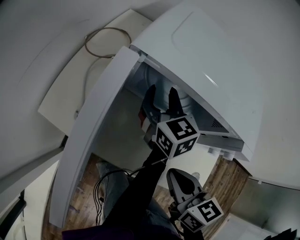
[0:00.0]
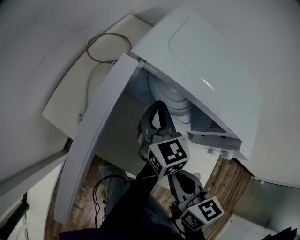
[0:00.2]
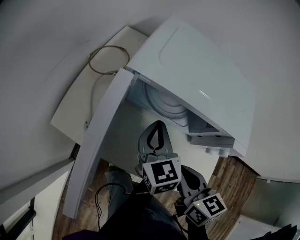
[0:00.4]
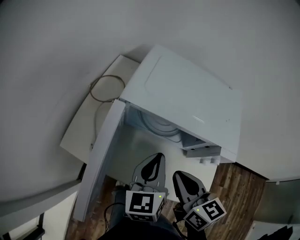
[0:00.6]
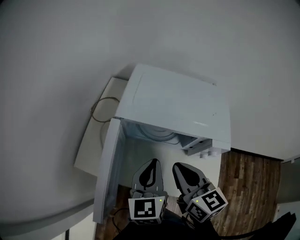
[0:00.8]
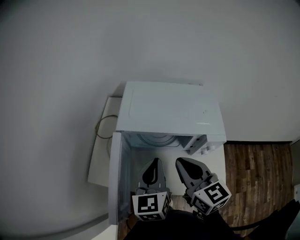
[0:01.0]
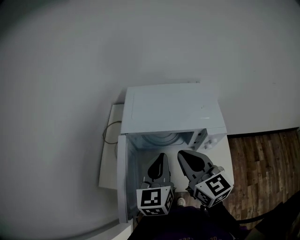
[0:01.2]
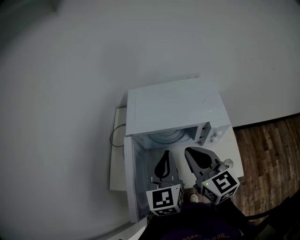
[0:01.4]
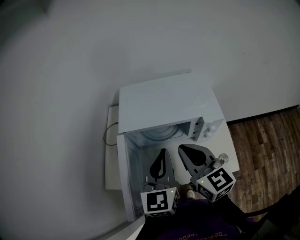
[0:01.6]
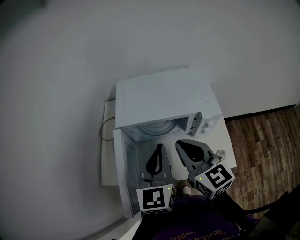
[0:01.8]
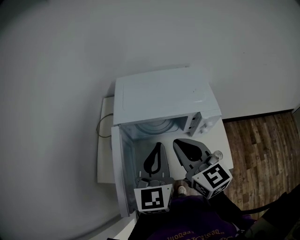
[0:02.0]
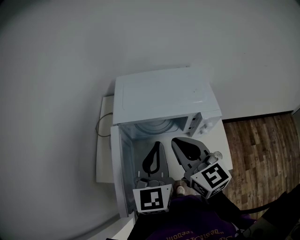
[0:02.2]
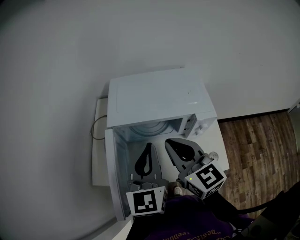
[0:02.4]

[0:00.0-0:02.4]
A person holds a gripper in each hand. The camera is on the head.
0:00.0 to 0:01.2: Both grippers travel together upward, approximately 20 cm. The left gripper rotates roughly 40 degrees, and closes up. The right gripper turns by some 40 degrees.
0:01.2 to 0:02.4: The left gripper shifts by about 5 cm.

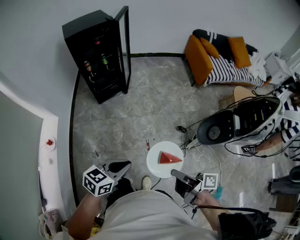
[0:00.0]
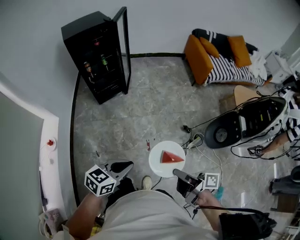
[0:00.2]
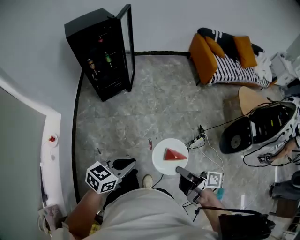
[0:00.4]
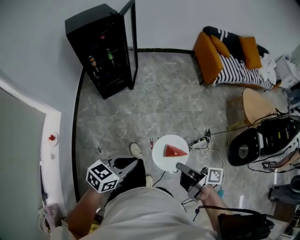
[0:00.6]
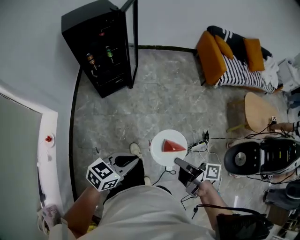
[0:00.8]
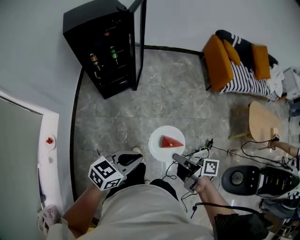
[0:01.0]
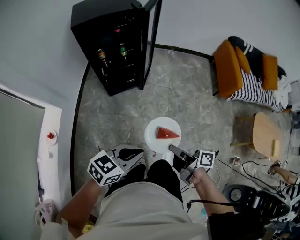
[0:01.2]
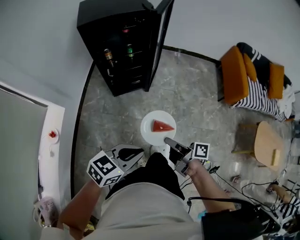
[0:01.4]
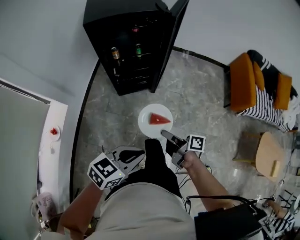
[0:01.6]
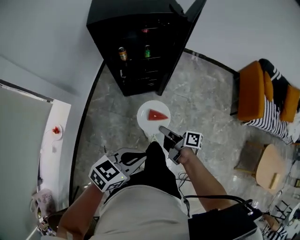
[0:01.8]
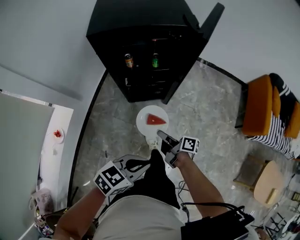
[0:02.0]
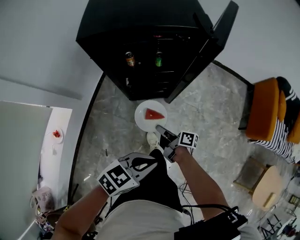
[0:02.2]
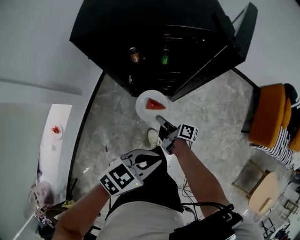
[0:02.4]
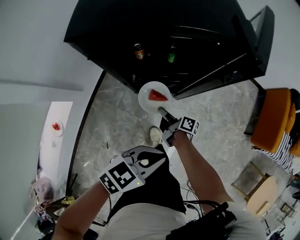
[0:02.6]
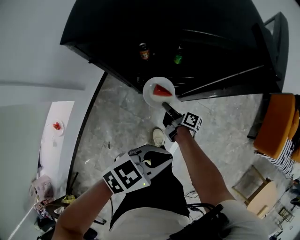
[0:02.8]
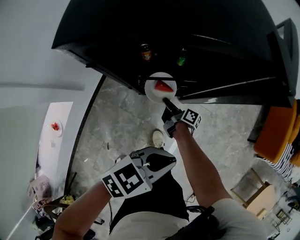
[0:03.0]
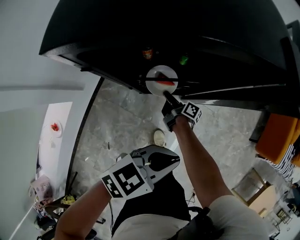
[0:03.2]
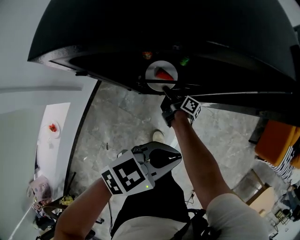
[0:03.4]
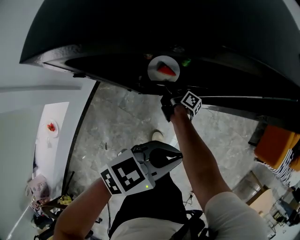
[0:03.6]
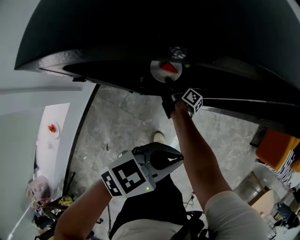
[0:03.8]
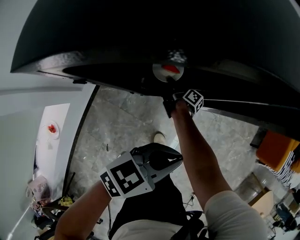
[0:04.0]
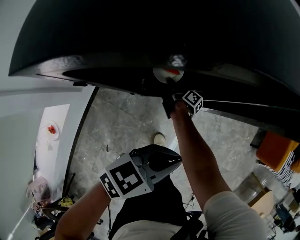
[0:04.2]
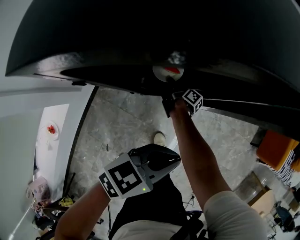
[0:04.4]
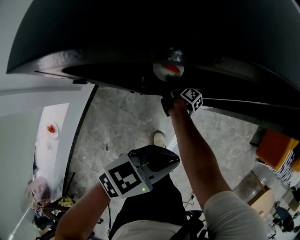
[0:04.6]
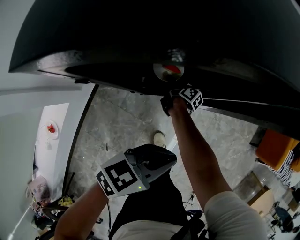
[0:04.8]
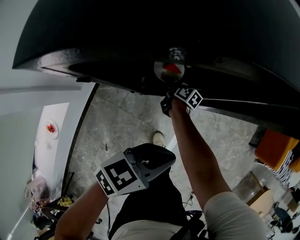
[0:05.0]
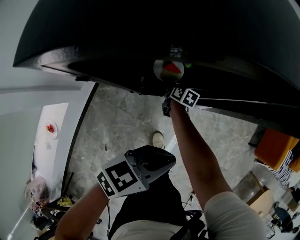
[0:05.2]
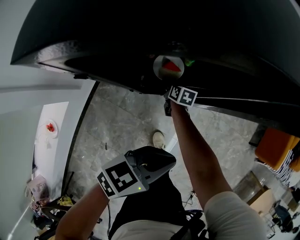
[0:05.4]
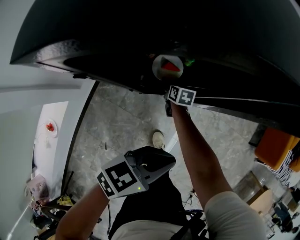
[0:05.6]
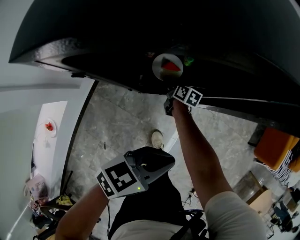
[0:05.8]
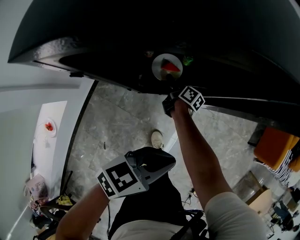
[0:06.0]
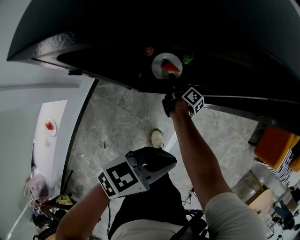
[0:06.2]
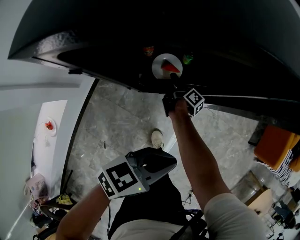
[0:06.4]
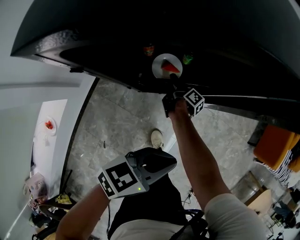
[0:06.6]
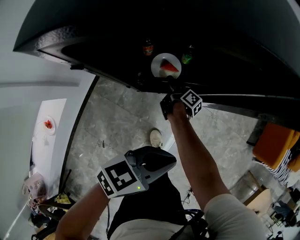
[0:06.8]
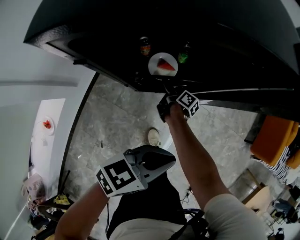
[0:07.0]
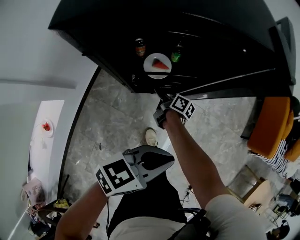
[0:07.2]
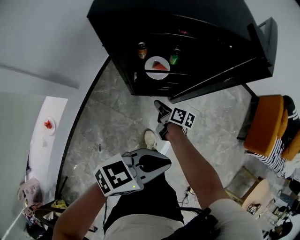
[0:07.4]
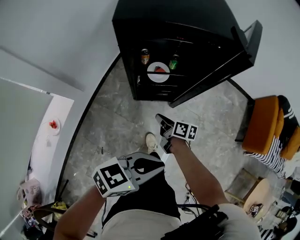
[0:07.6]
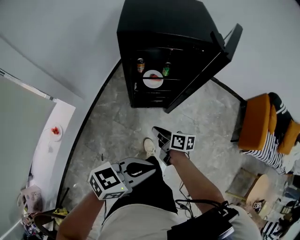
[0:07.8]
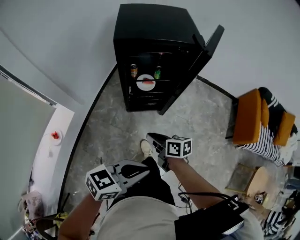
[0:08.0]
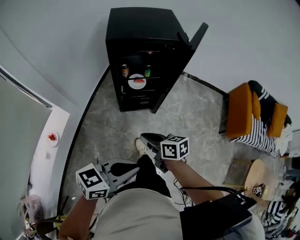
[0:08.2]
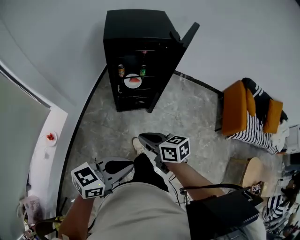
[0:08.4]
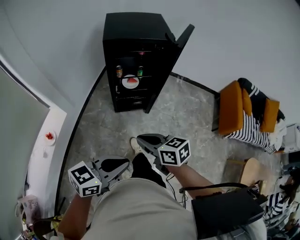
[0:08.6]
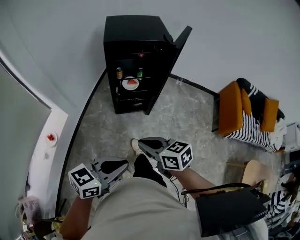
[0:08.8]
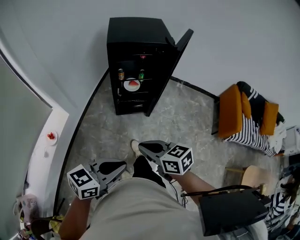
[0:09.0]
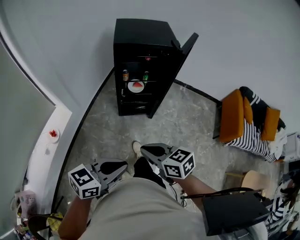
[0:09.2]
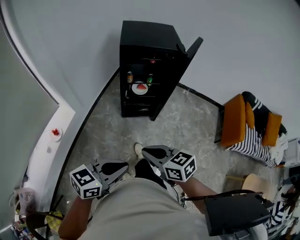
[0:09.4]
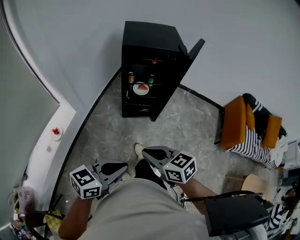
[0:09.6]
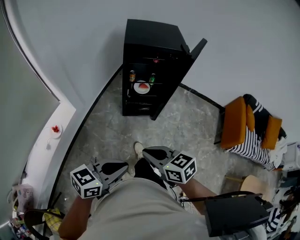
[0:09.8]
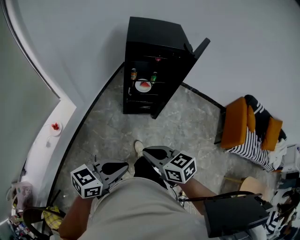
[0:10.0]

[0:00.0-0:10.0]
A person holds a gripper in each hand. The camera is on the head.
0:00.0 to 0:01.4: The left gripper ends up about 30 cm from where it was.
0:01.4 to 0:02.8: The left gripper moves about 35 cm.
0:02.8 to 0:04.2: The left gripper shifts by approximately 10 cm.
0:05.8 to 0:07.2: The left gripper goes about 5 cm upward.
0:07.2 to 0:08.6: The left gripper changes place by roughly 35 cm.

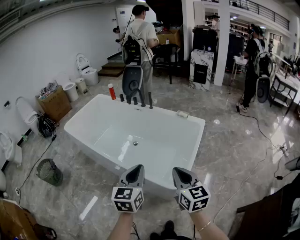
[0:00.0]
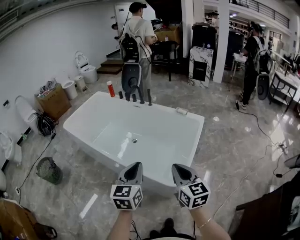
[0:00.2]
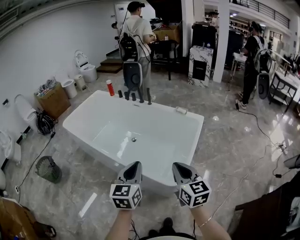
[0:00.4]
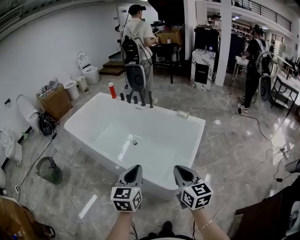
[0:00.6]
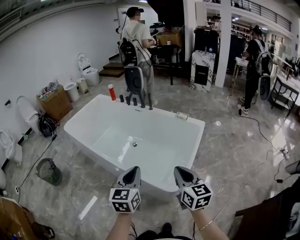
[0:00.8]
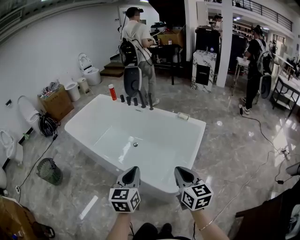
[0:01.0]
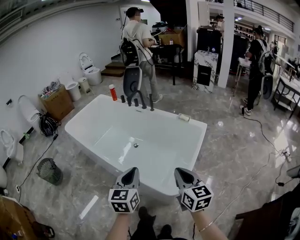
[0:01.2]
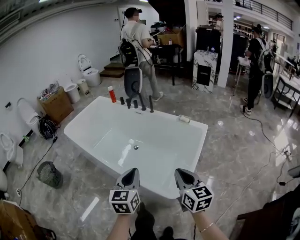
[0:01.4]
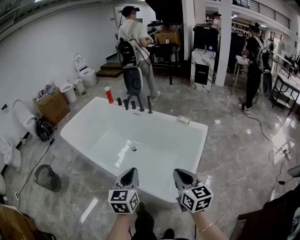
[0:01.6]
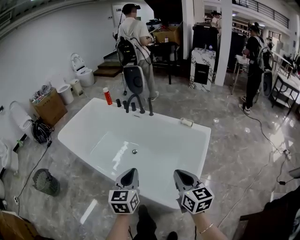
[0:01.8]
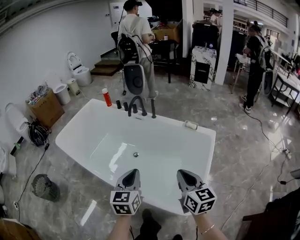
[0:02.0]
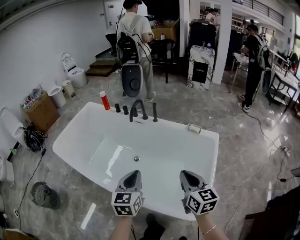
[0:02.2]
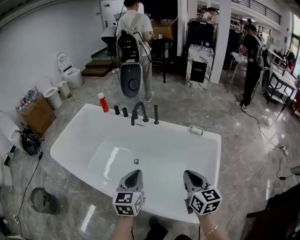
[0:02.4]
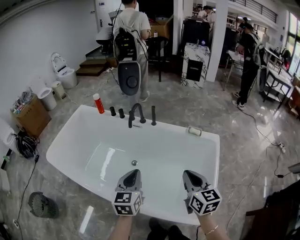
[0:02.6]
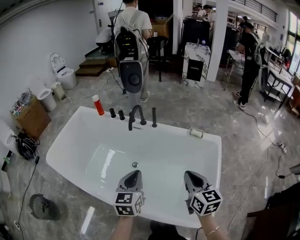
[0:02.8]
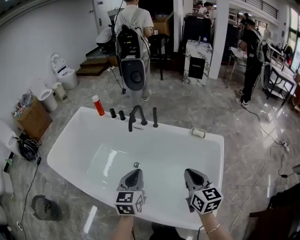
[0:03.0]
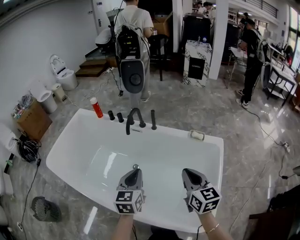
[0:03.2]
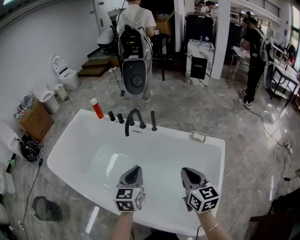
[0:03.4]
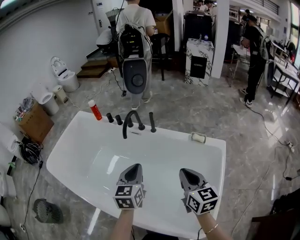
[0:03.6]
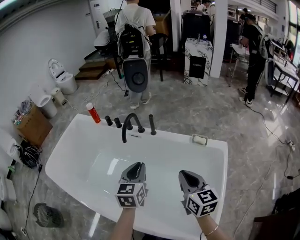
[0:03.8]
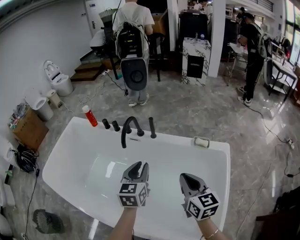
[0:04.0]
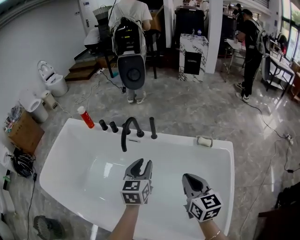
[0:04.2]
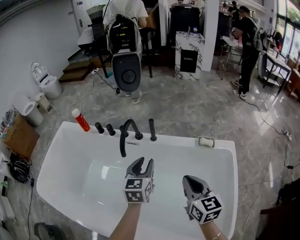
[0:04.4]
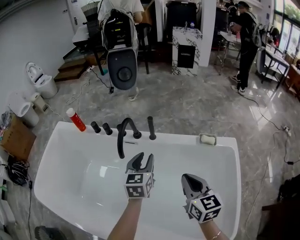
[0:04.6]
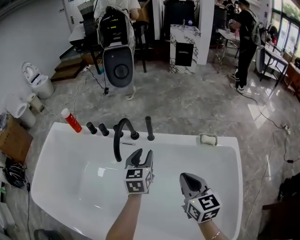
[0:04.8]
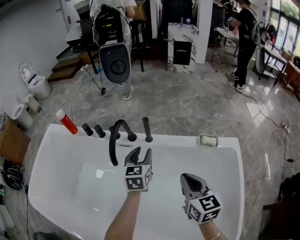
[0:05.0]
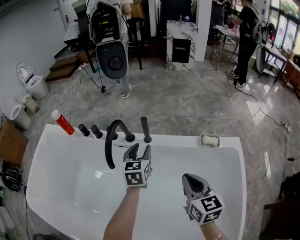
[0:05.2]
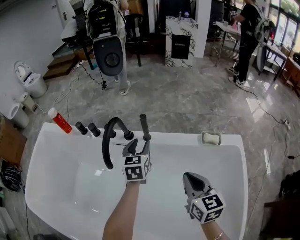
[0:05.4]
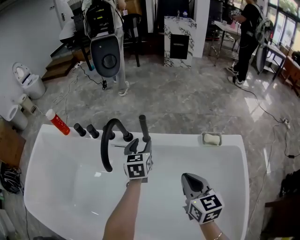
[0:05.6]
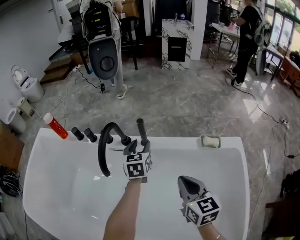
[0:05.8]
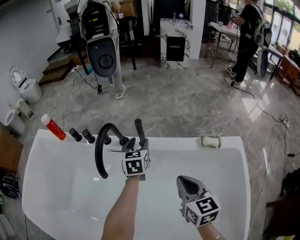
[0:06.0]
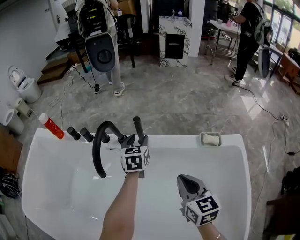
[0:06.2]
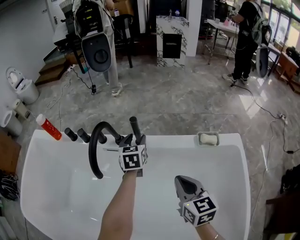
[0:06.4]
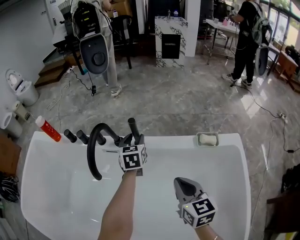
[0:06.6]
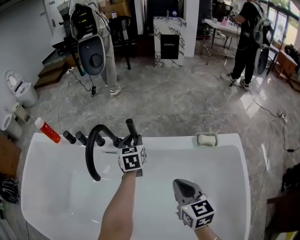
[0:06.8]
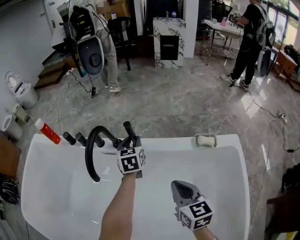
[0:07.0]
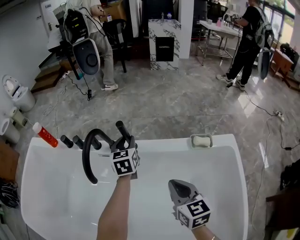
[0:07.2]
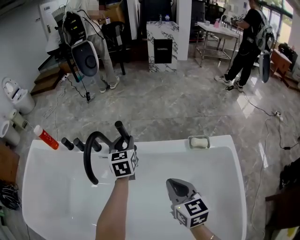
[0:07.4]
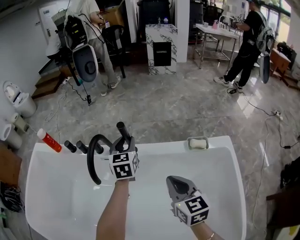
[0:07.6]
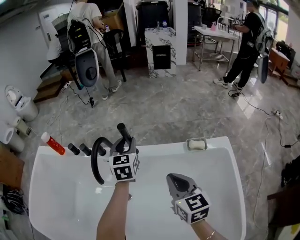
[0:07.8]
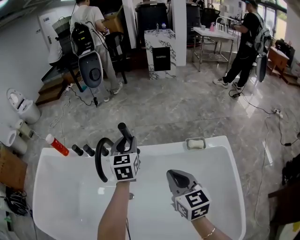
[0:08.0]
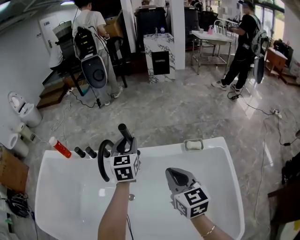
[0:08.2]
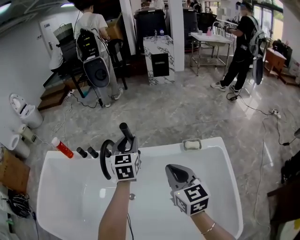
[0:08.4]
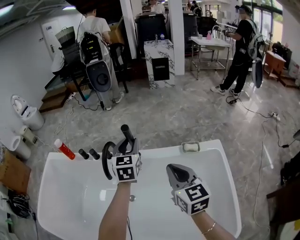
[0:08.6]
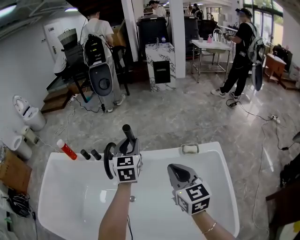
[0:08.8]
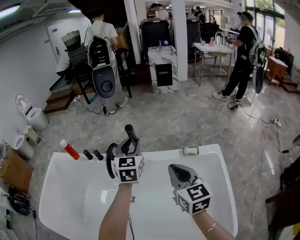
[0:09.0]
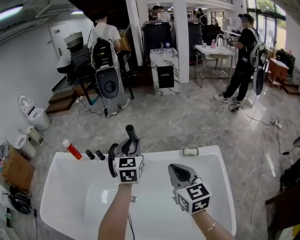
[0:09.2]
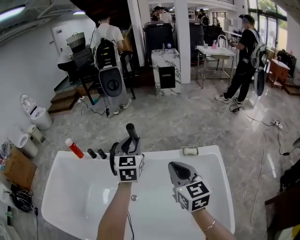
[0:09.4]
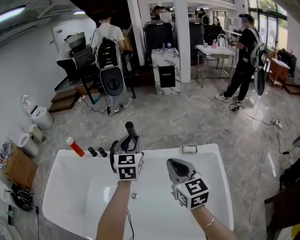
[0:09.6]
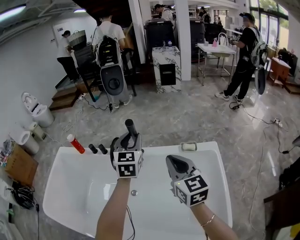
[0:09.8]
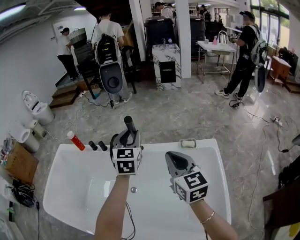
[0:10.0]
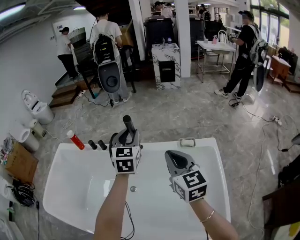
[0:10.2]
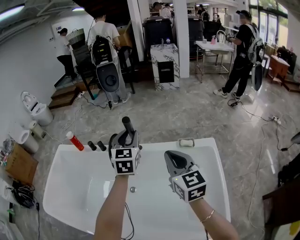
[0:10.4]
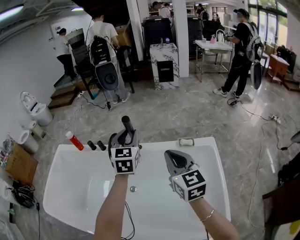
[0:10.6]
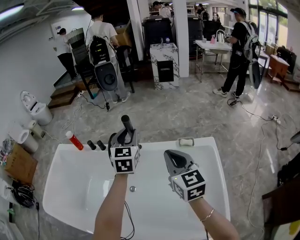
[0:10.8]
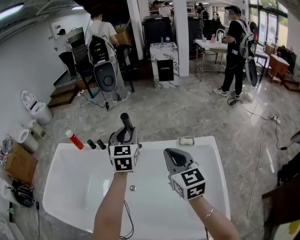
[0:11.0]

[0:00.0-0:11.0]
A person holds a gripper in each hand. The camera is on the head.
0:00.0 to 0:01.6: The grippers both shift forward by about 15 cm.
0:01.6 to 0:03.2: The two grippers travel together, forward, roughly 50 cm.
0:03.2 to 0:04.8: Both grippers travel together forward and downward, about 40 cm. The left gripper opens up.
0:04.8 to 0:06.2: The left gripper is displaced forward and downward by about 25 cm, while the right gripper heads downward and forward, covering roughly 20 cm.
0:06.2 to 0:07.8: The right gripper heads upward, covering some 10 cm. Meanwhile the left gripper shifts some 15 cm upward.
0:07.8 to 0:09.4: Both grippers move upward and backward, approximately 35 cm.
0:09.4 to 0:11.0: The left gripper ends up roughly 5 cm from where it was, while the right gripper shifts by some 5 cm.
